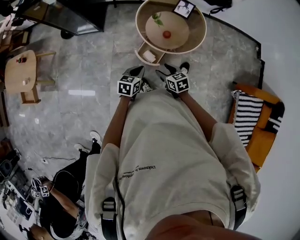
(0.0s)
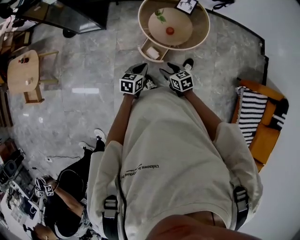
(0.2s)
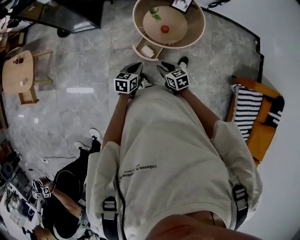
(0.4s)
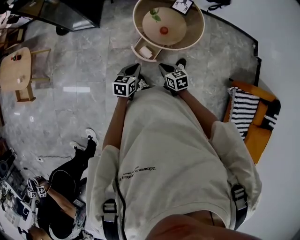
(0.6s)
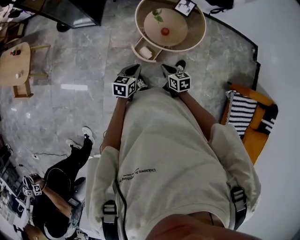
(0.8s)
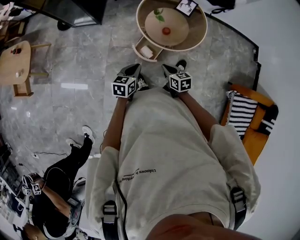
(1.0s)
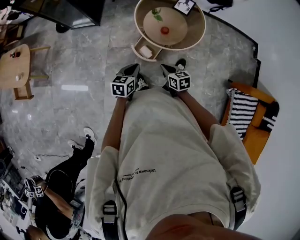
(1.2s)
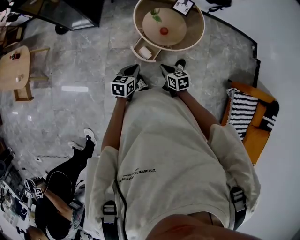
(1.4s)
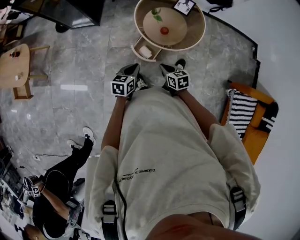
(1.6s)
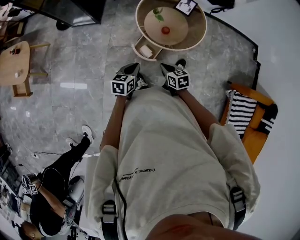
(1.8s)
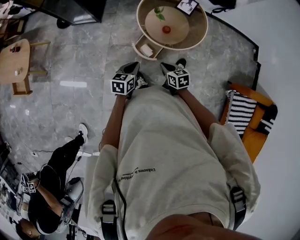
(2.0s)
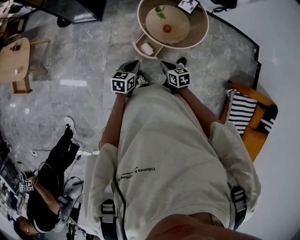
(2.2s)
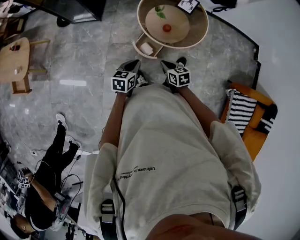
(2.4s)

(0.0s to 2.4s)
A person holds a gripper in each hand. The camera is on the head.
0.0s - 1.2s: The right gripper closes up.
1.2s - 2.4s: Both grippers stay about where they are.

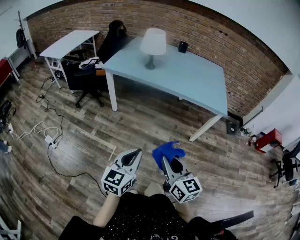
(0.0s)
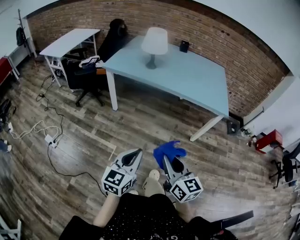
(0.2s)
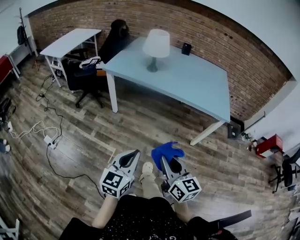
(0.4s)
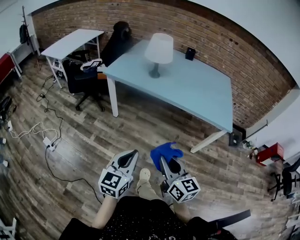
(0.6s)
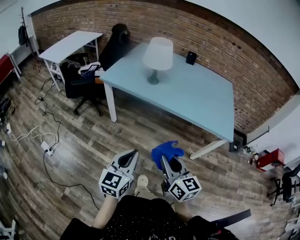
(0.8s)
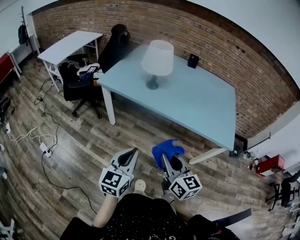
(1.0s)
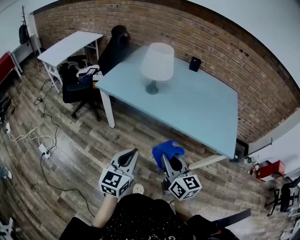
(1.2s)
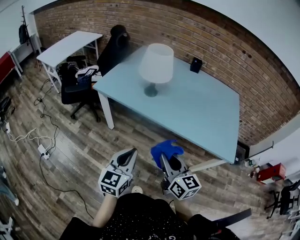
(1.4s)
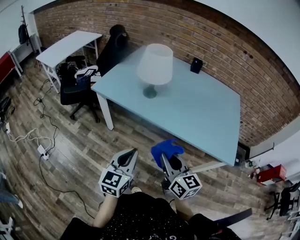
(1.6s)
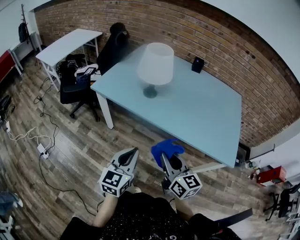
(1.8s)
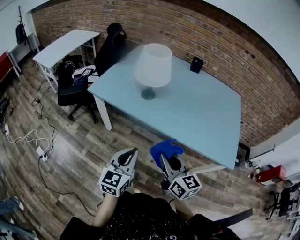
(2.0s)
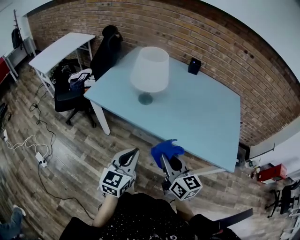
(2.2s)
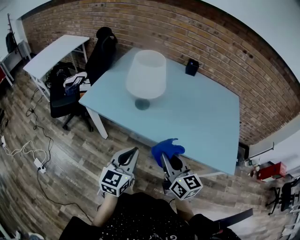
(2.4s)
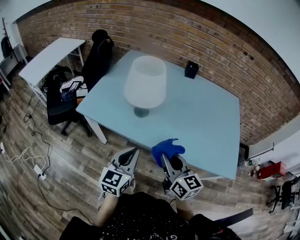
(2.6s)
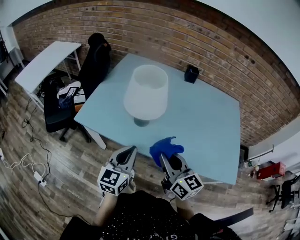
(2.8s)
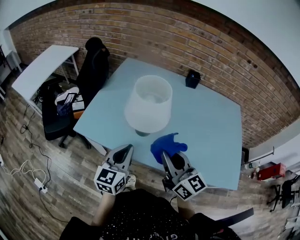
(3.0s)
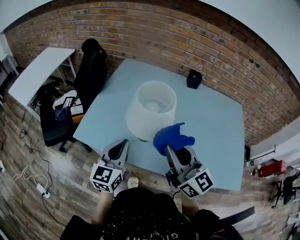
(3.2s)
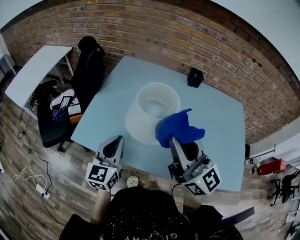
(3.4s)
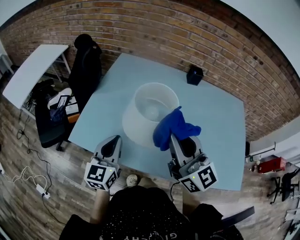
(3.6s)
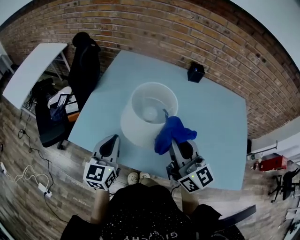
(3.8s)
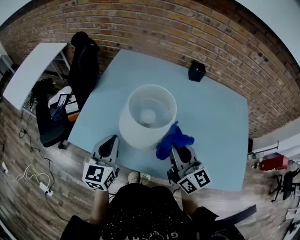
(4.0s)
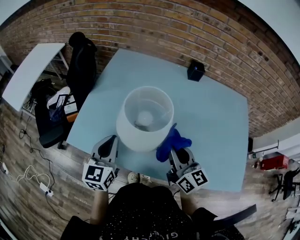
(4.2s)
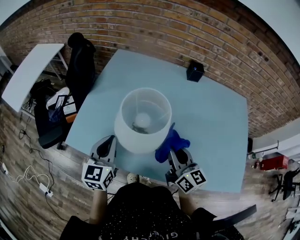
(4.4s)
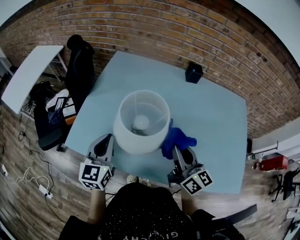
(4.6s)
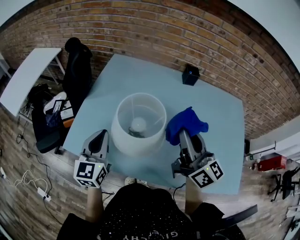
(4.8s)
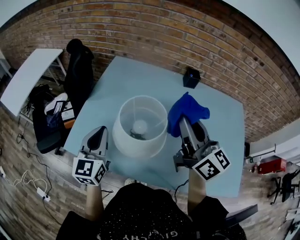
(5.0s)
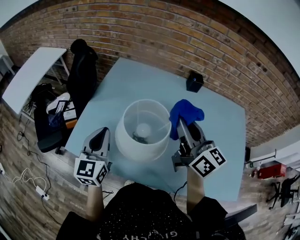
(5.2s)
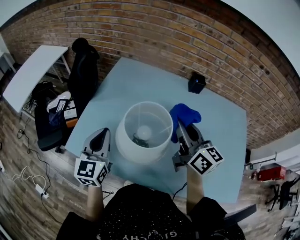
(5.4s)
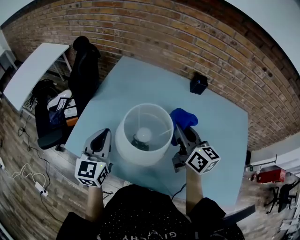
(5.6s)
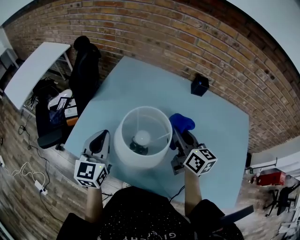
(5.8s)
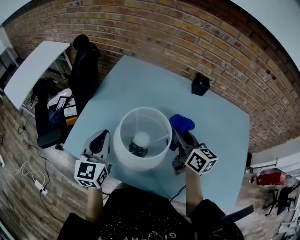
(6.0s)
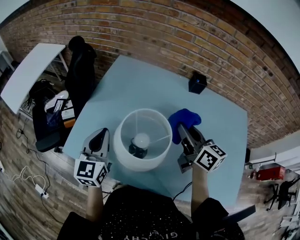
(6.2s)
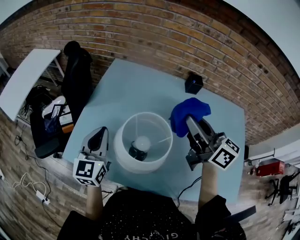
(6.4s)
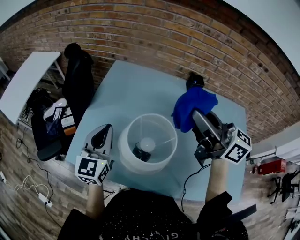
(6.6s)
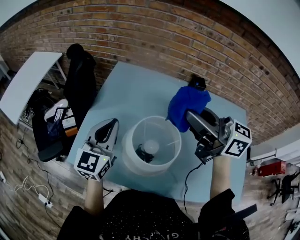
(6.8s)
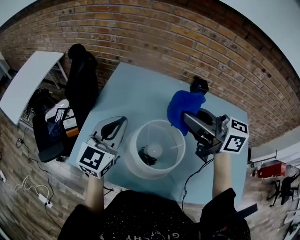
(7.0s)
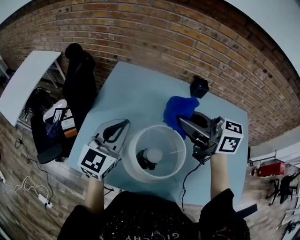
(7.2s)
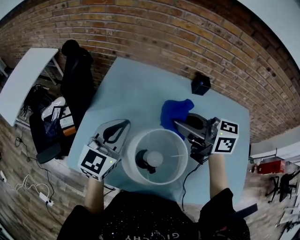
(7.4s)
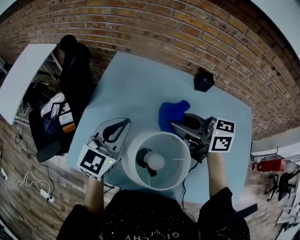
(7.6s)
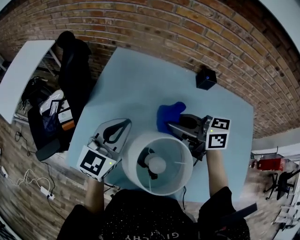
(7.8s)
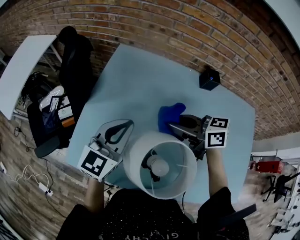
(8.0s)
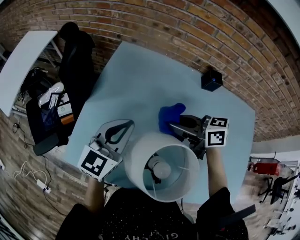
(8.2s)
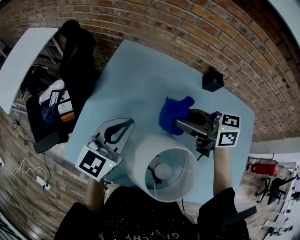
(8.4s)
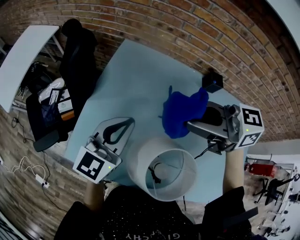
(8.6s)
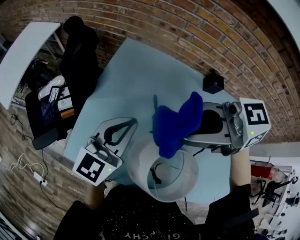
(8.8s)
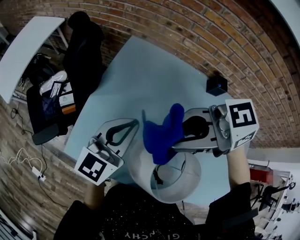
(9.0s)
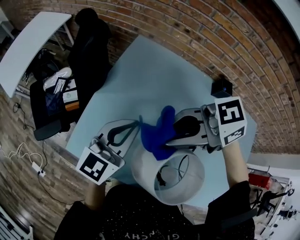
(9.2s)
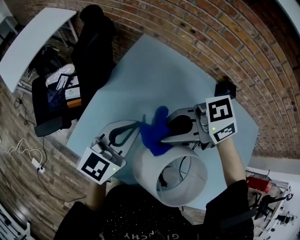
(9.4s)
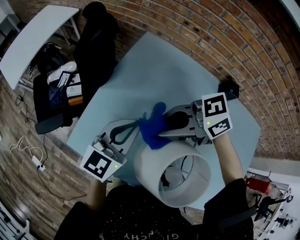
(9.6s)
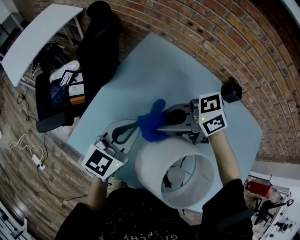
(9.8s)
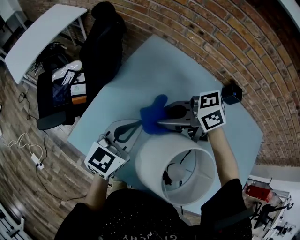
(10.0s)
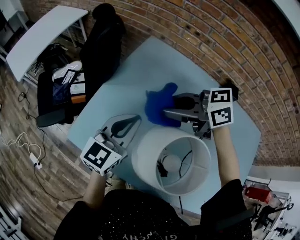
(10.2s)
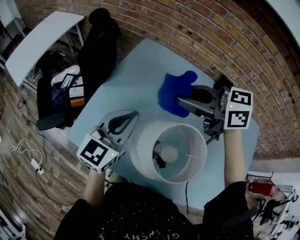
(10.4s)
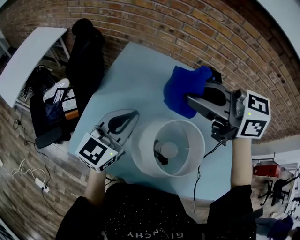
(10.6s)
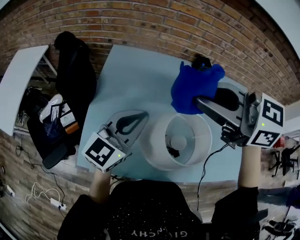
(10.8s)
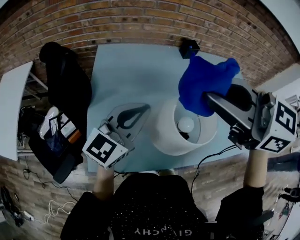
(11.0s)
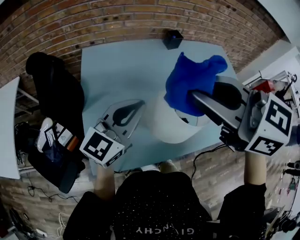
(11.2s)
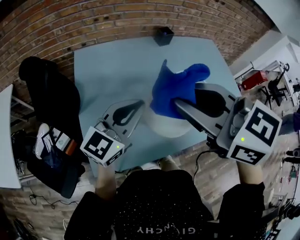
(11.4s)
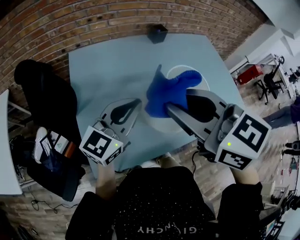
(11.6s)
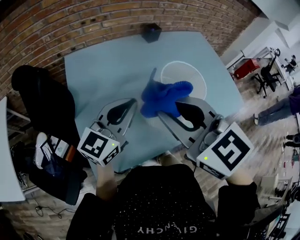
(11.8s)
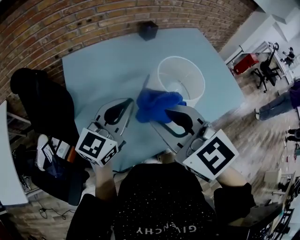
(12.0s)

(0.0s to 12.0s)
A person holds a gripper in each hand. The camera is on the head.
0.0s - 1.6s: Both grippers move forward, approximately 40 cm.
1.6s - 3.0s: Both grippers move forward, some 30 cm.
3.0s - 4.4s: The left gripper travels forward by roughly 15 cm. The right gripper shifts about 15 cm forward, downward and to the right.
4.4s - 6.0s: The right gripper travels forward by roughly 15 cm, and goes upward and returns, approximately 20 cm each way. The left gripper shifts some 5 cm forward.
6.0s - 7.6s: The left gripper heads forward and to the right, covering some 10 cm, and rotates about 30 degrees. Meanwhile the right gripper travels to the left, upward and forward by roughly 15 cm, and changes its angle by some 40 degrees.
7.6s - 9.0s: The right gripper swings up and down, some 20 cm each way, with 2 reversals, and swivels some 40 degrees.
9.0s - 10.4s: The left gripper changes place by roughly 5 cm. Meanwhile the right gripper reaches about 15 cm downward, then returns, and changes its angle by some 20 degrees.
10.4s - 12.0s: The left gripper turns by approximately 50 degrees. Meanwhile the right gripper travels upward and back again, about 15 cm each way, and turns by roughly 70 degrees.

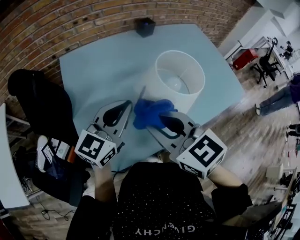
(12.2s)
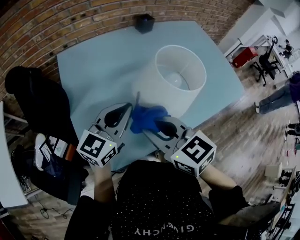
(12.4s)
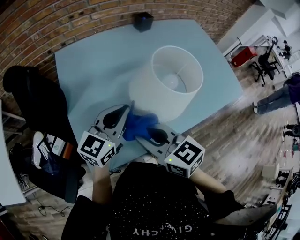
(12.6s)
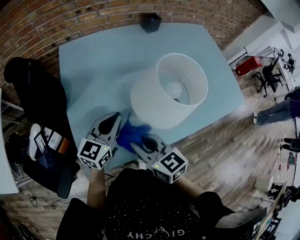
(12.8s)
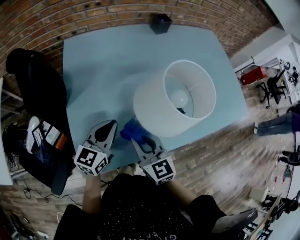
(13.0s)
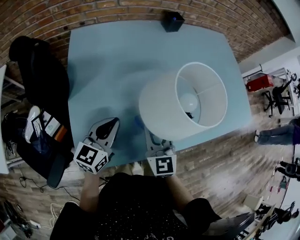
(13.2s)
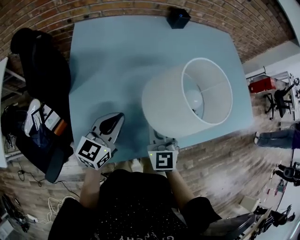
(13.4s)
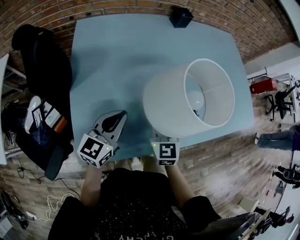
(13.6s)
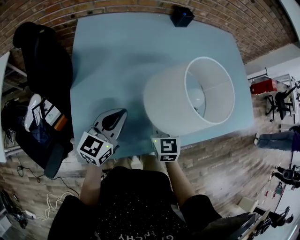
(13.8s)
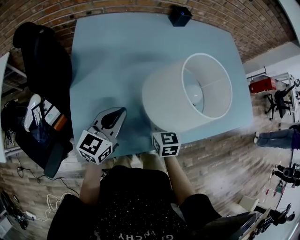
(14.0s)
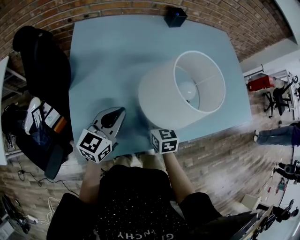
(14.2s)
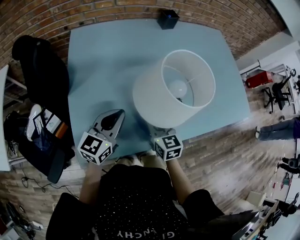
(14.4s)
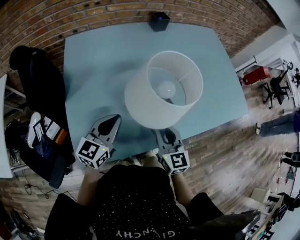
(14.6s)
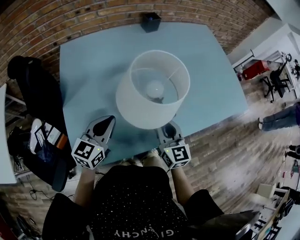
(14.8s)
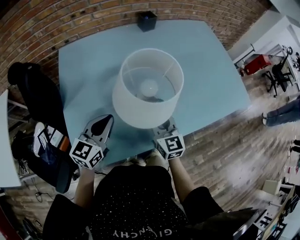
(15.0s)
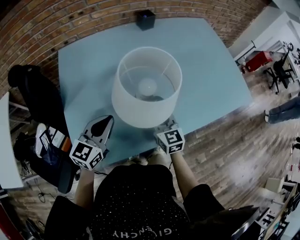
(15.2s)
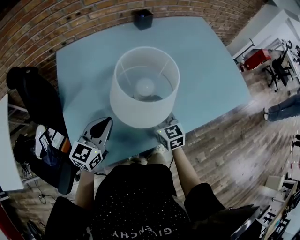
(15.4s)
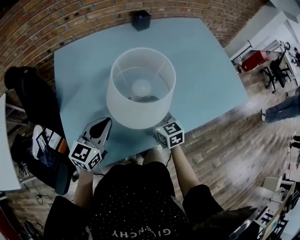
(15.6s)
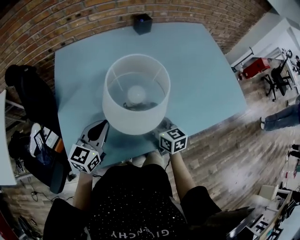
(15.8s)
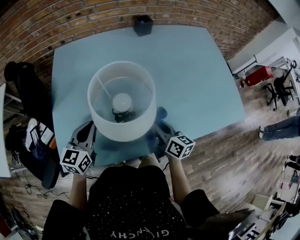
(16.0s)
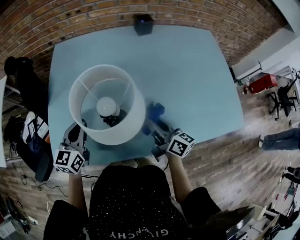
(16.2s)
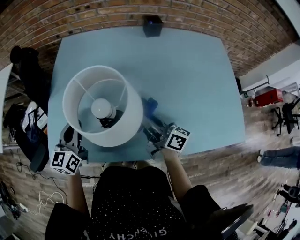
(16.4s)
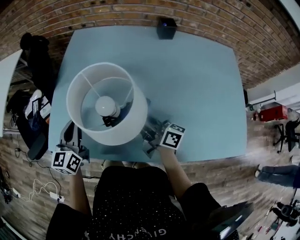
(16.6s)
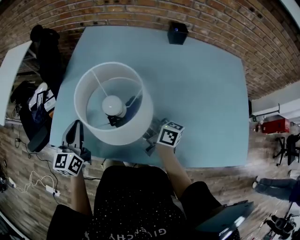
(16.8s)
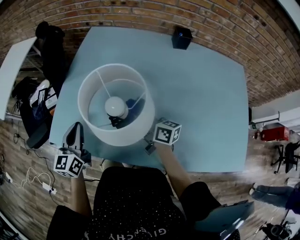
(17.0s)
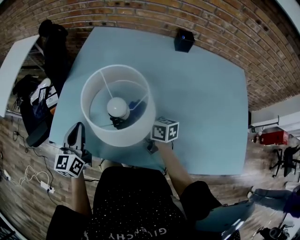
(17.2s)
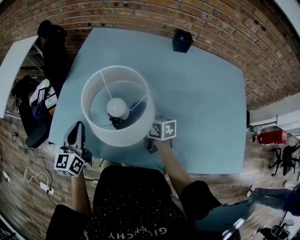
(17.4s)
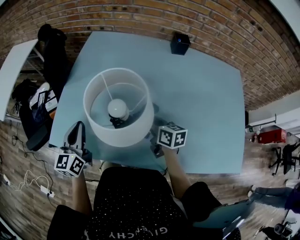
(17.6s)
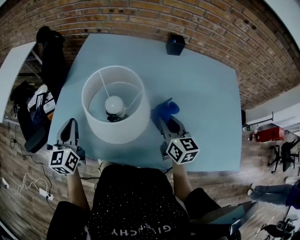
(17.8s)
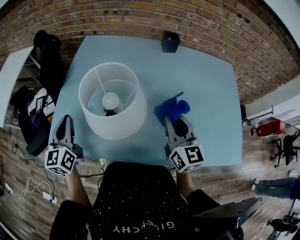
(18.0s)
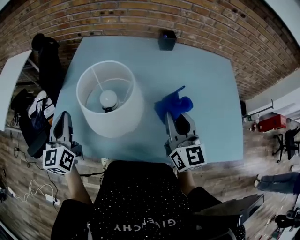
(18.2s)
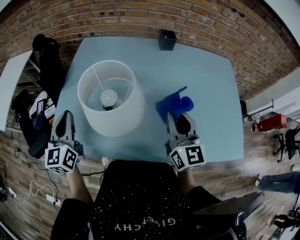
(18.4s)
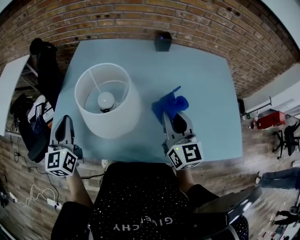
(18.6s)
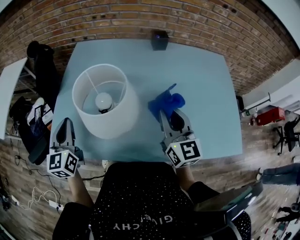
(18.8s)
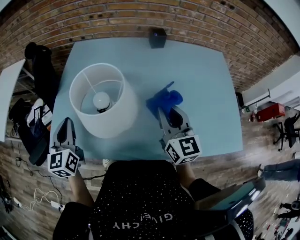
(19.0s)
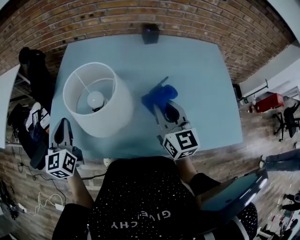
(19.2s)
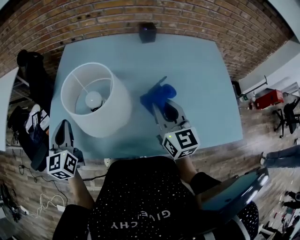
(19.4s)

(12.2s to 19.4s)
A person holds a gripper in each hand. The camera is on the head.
12.2s - 13.6s: The left gripper goes approximately 15 cm downward, and turns by roughly 20 degrees. The right gripper heads downward and forward, covering approximately 20 cm, and rotates about 20 degrees.
13.6s - 15.0s: The right gripper moves to the right, about 10 cm.
15.0s - 16.6s: The left gripper rotates roughly 50 degrees. Meanwhile the right gripper moves some 5 cm downward and comes back, and swivels some 70 degrees.
16.6s - 18.0s: The left gripper moves upward, roughly 5 cm. The right gripper heads upward, to the right and backward, covering some 15 cm, and rolls counterclockwise, seen from behind, by approximately 50 degrees.
18.0s - 19.4s: The grippers move only a little.

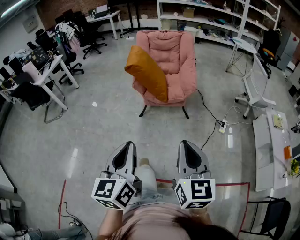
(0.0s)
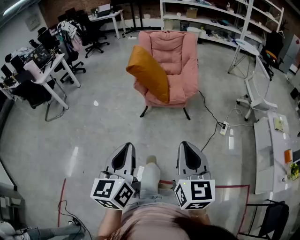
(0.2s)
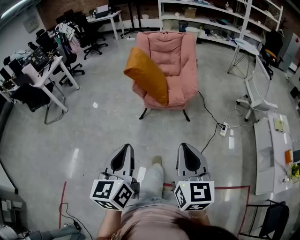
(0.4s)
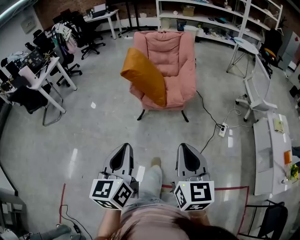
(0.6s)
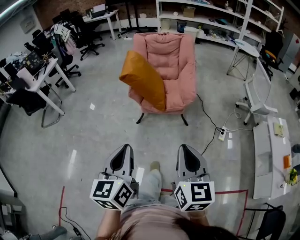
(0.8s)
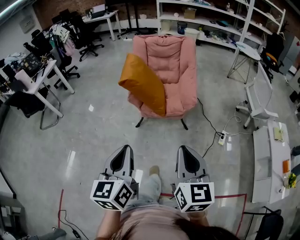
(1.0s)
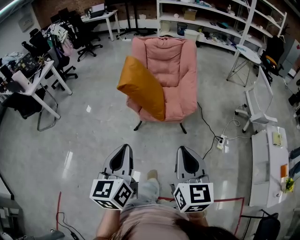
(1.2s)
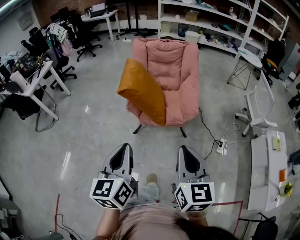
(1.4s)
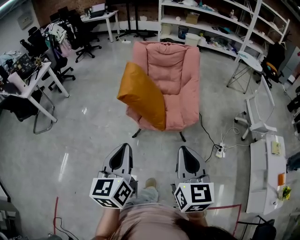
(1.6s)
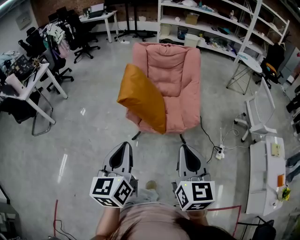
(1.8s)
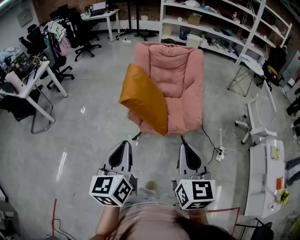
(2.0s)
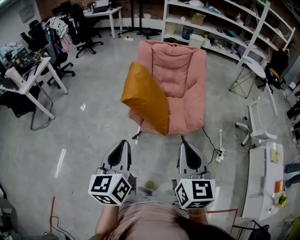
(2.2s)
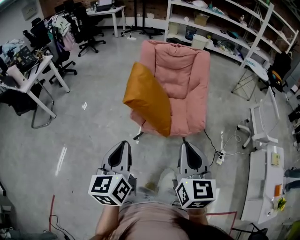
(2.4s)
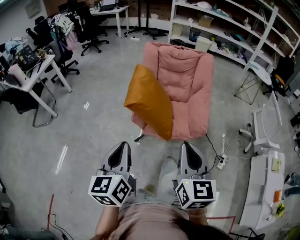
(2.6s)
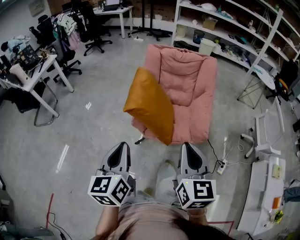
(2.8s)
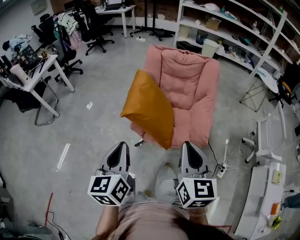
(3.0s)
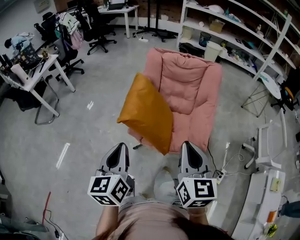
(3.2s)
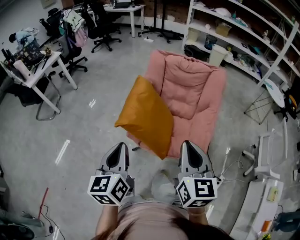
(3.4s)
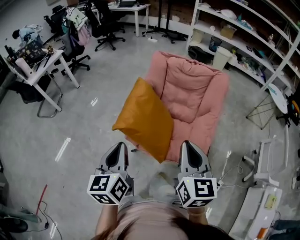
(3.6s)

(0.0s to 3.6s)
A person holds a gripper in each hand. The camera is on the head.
0.0s - 1.8s: Both grippers travel together forward, about 30 cm.
1.8s - 3.6s: The two grippers go approximately 25 cm forward.
